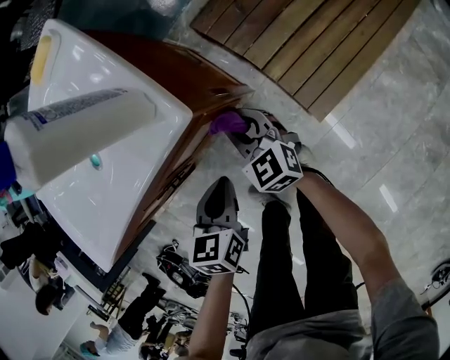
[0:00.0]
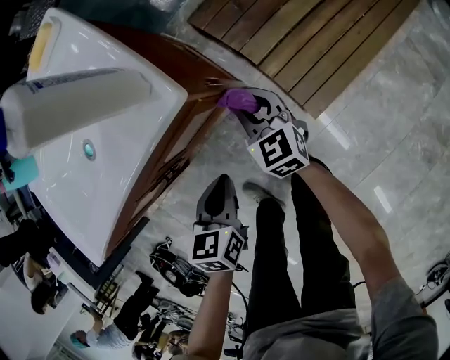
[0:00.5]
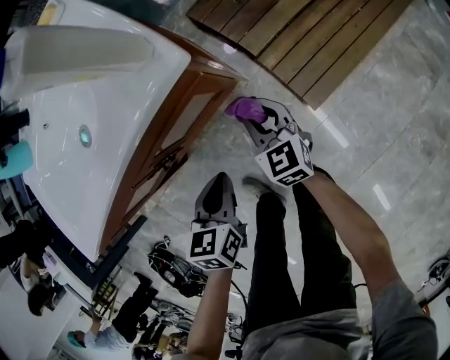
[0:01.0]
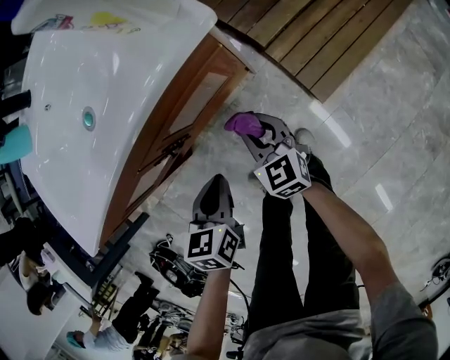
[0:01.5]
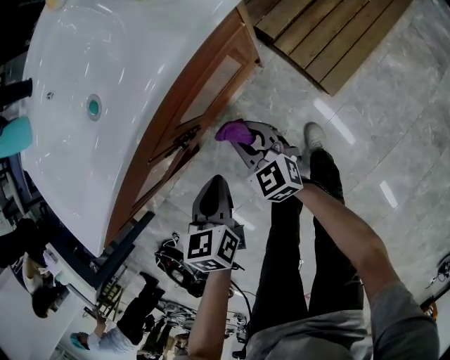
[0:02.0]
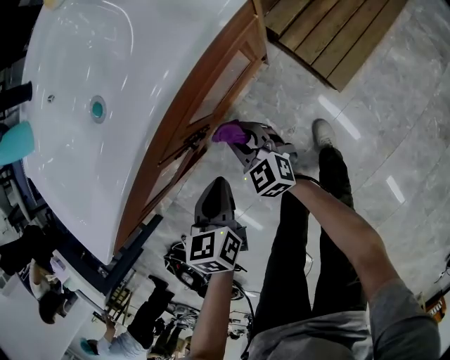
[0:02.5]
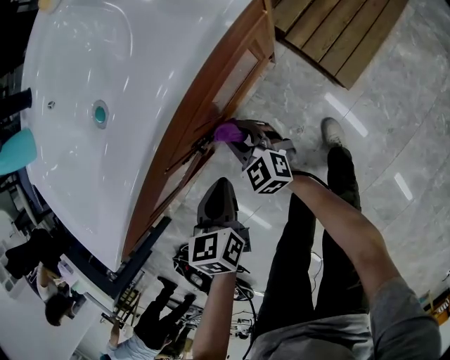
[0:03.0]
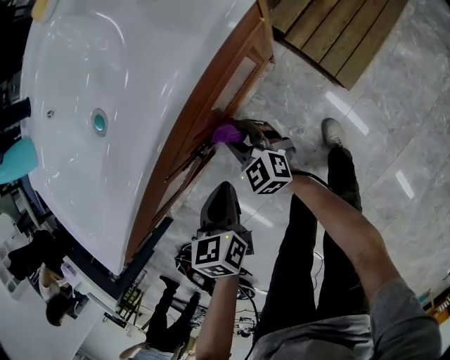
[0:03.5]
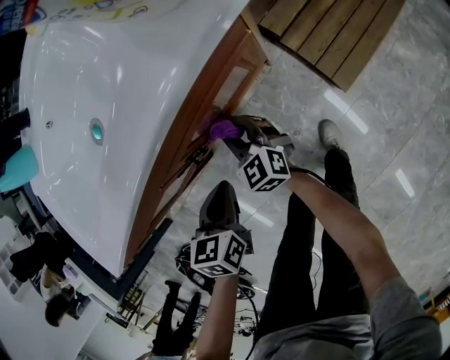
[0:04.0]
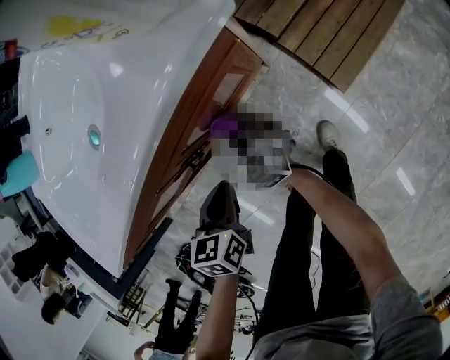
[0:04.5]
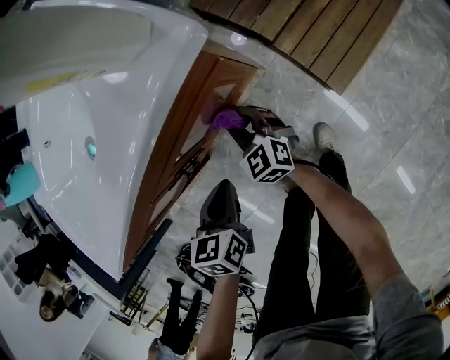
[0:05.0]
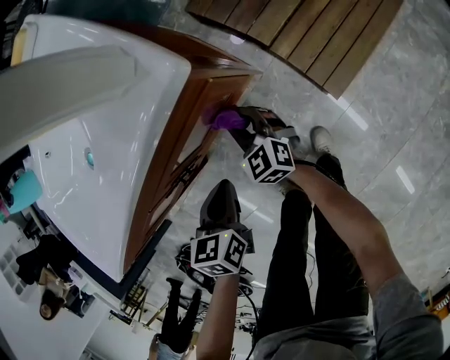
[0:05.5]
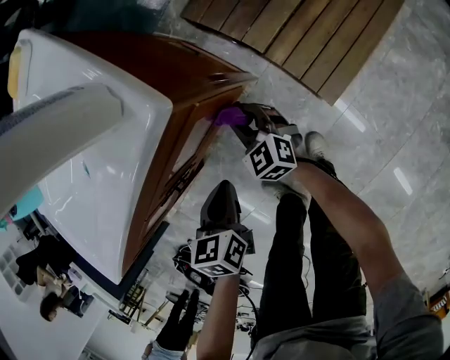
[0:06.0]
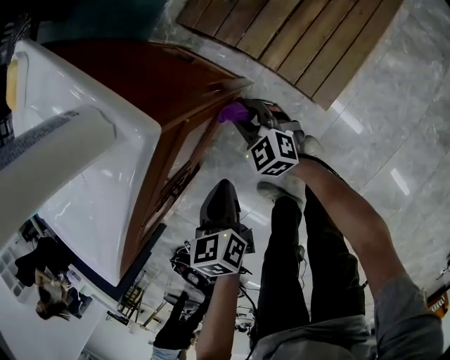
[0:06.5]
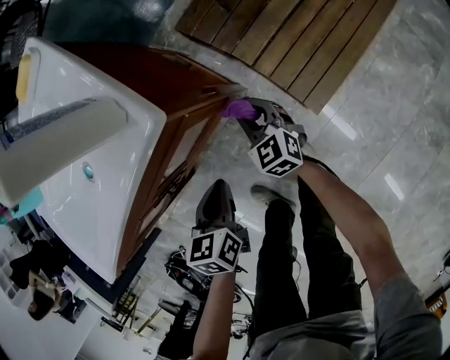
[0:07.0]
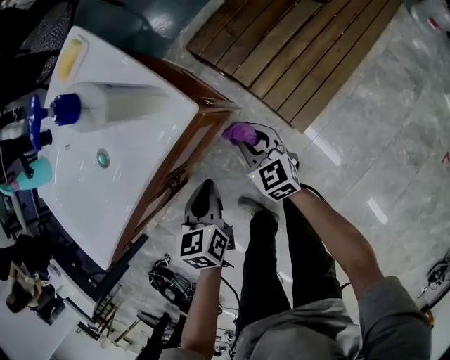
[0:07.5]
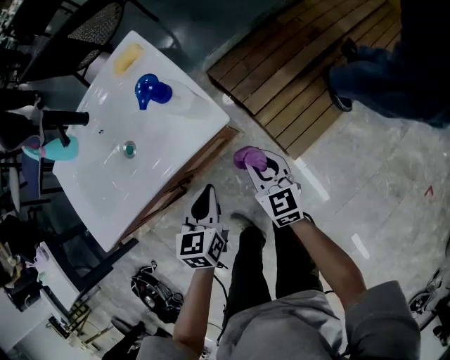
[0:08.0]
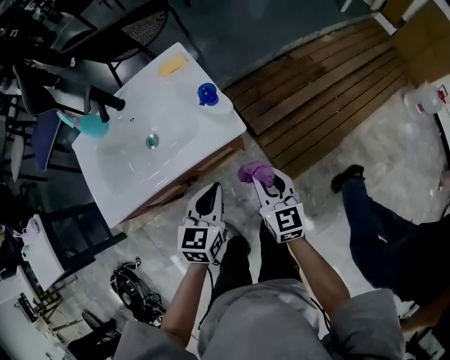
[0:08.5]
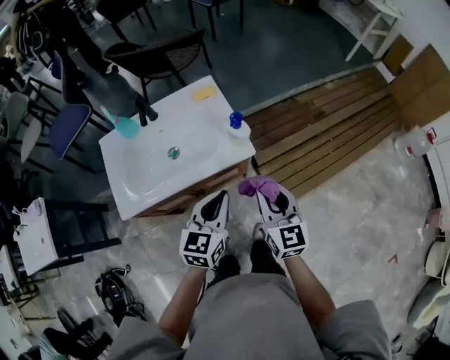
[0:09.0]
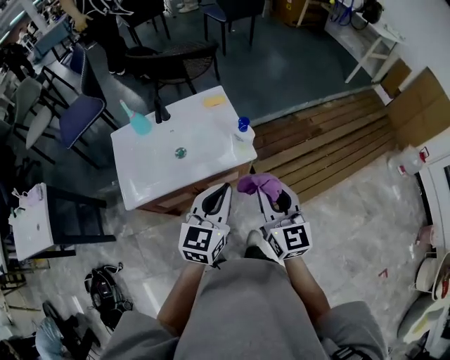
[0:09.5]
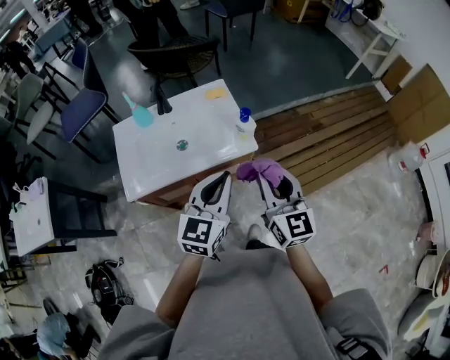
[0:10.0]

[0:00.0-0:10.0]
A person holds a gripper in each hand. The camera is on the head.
0:00.0 to 0:02.0: The right gripper moves backward and to the left, about 15 cm. The left gripper heads to the left and backward, covering some 15 cm.
0:02.0 to 0:04.0: The right gripper goes about 5 cm forward.
0:04.0 to 0:06.0: Both grippers move to the right, roughly 10 cm.
0:06.0 to 0:08.0: The two grippers go some 20 cm upward.
0:08.0 to 0:10.0: The grippers both shift upward by some 35 cm. The right gripper turns by some 20 degrees; the left gripper swivels some 30 degrees.

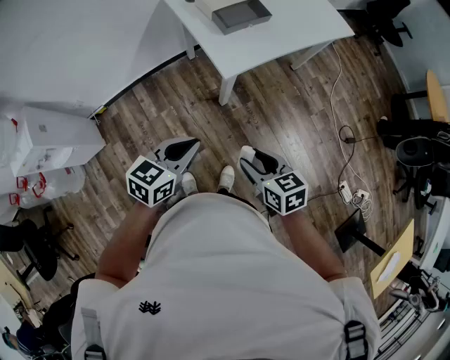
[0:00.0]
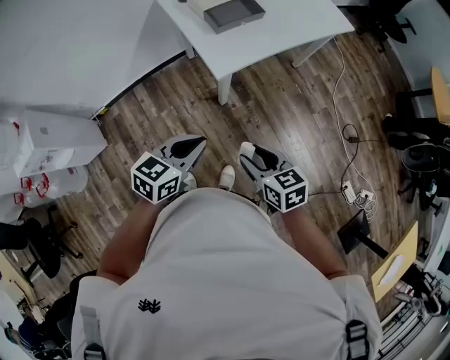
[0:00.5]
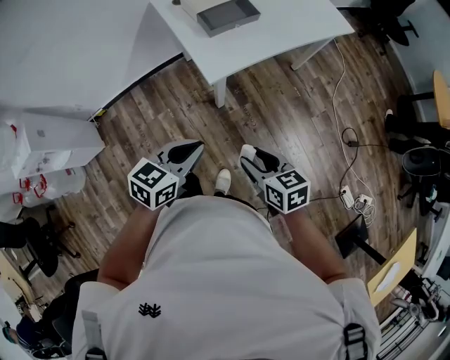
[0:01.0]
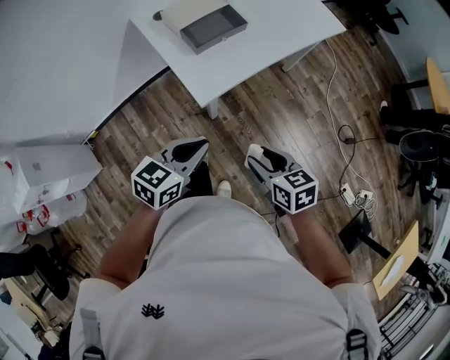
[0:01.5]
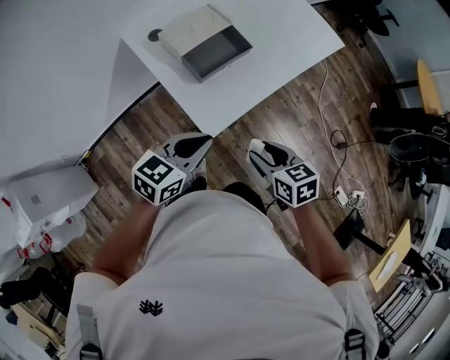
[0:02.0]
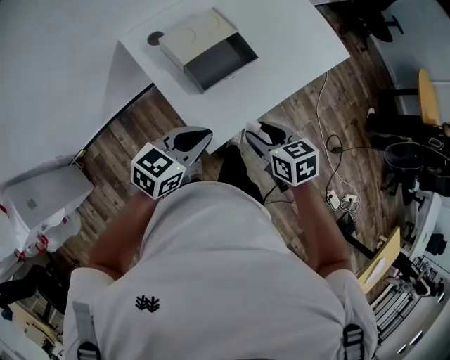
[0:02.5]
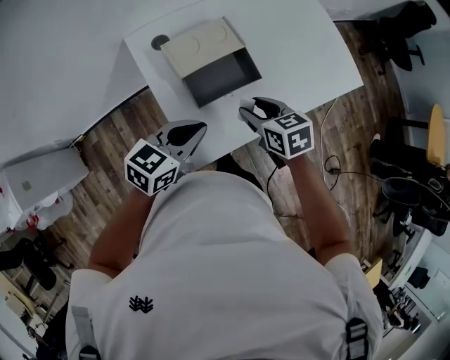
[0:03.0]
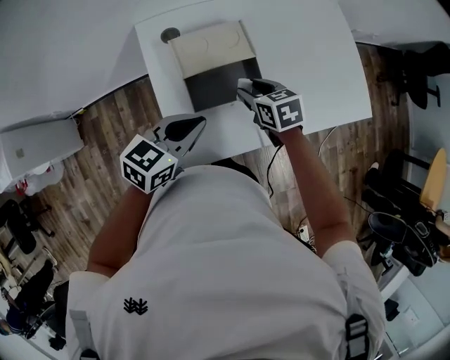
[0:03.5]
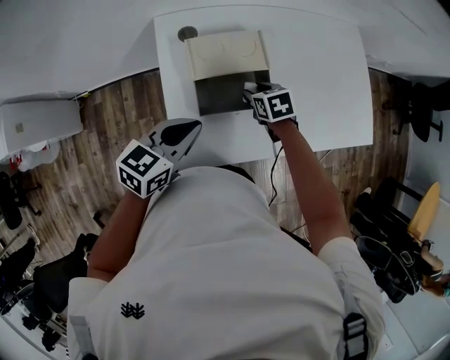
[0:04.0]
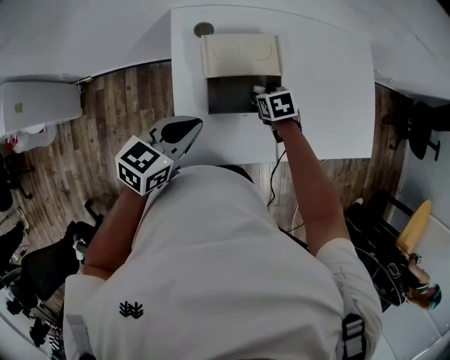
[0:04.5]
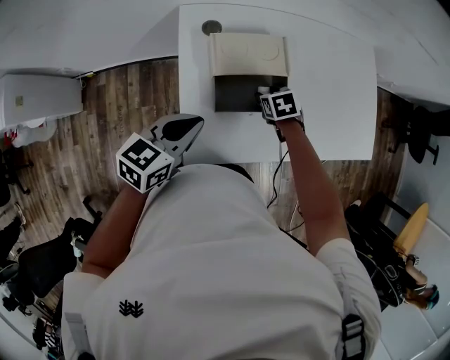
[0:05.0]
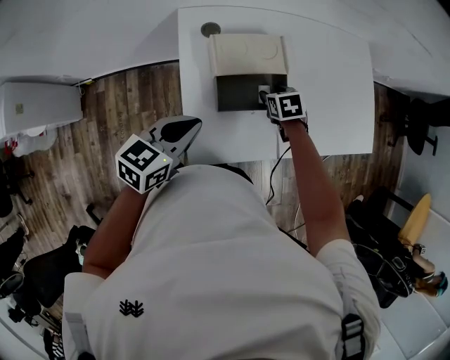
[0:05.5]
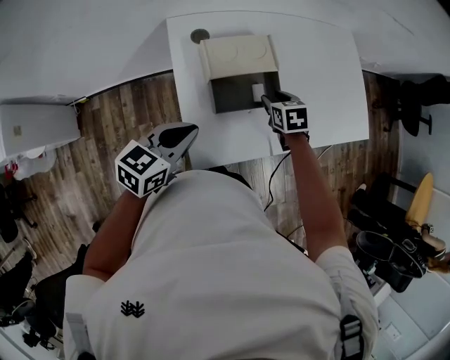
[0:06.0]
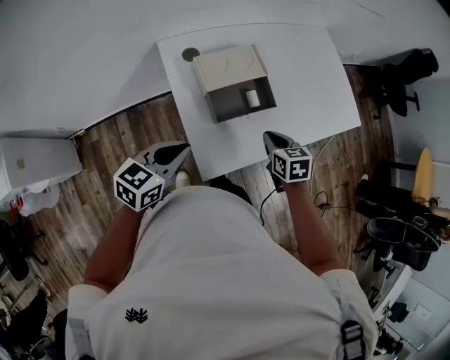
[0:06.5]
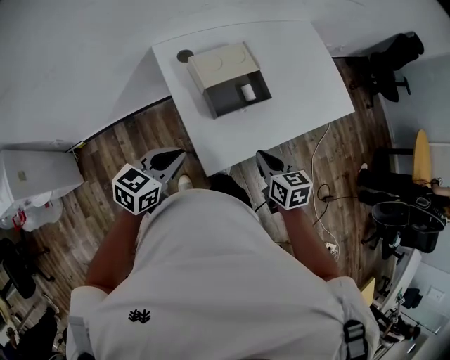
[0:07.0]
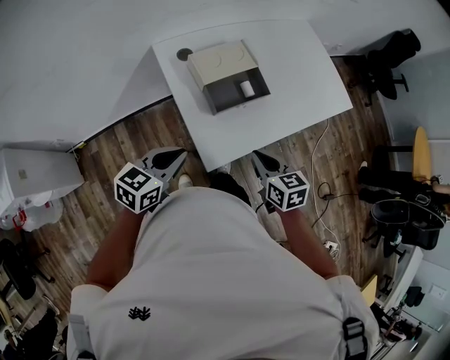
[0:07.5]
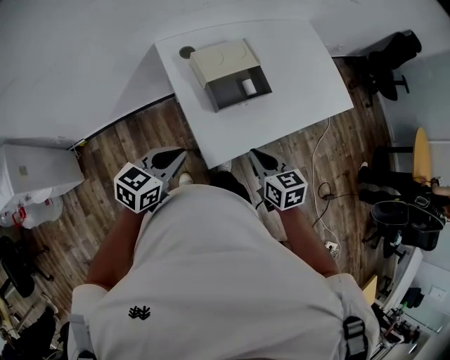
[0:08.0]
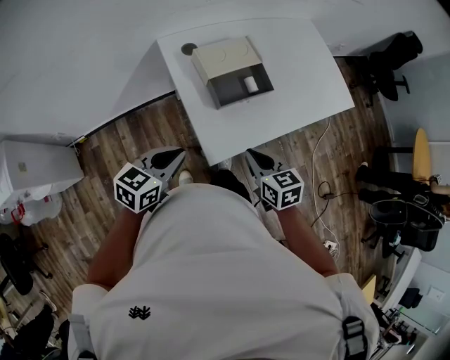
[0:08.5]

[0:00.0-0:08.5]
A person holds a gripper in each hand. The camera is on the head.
0:00.0 to 0:02.0: Both grippers travel together forward, roughly 20 cm.
0:02.0 to 0:04.0: The left gripper shifts by about 15 cm, and rotates roughly 30 degrees, while the right gripper moves about 40 cm, and turns by roughly 30 degrees.
0:04.0 to 0:06.5: The left gripper shifts about 10 cm to the left and backward. Meanwhile the right gripper travels backward and upward by approximately 15 cm, changes its angle by roughly 20 degrees, and closes its fingers.
0:06.5 to 0:08.5: The left gripper goes about 5 cm backward, while the right gripper moves backward and to the left, approximately 15 cm.

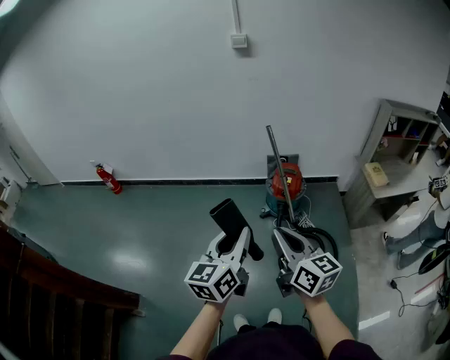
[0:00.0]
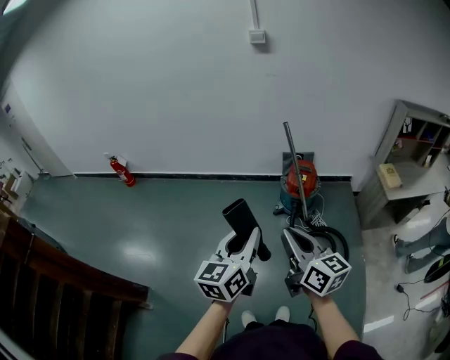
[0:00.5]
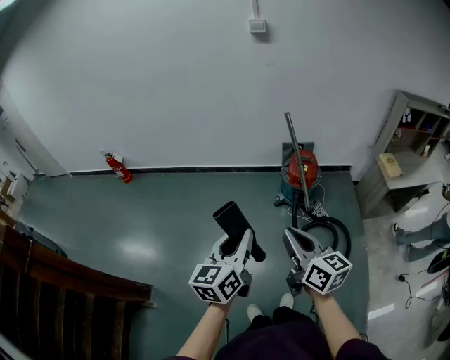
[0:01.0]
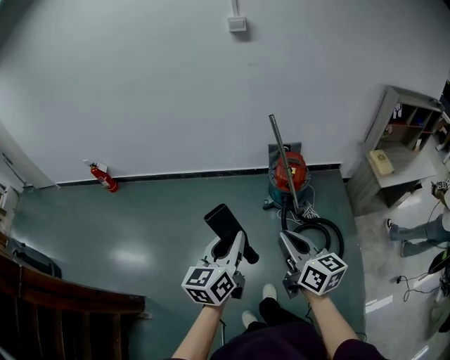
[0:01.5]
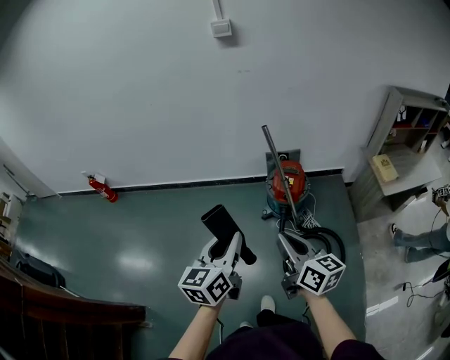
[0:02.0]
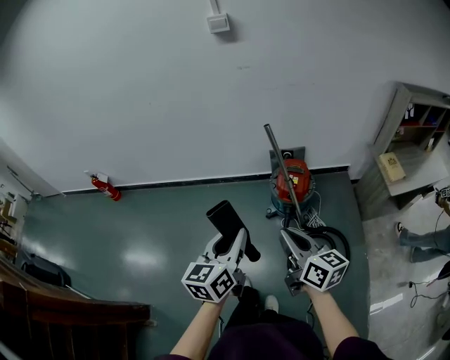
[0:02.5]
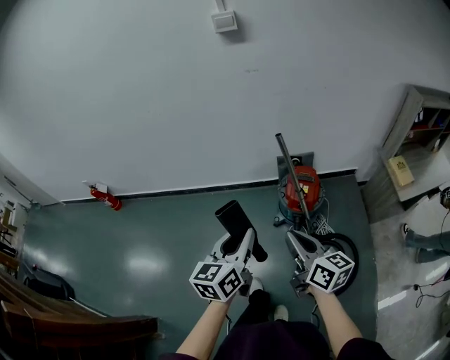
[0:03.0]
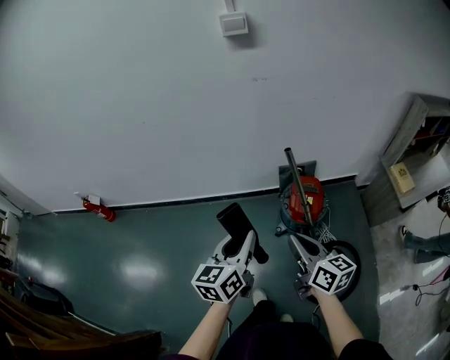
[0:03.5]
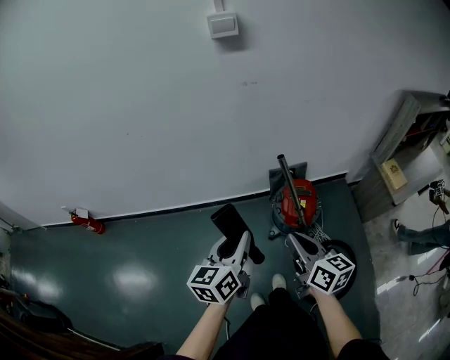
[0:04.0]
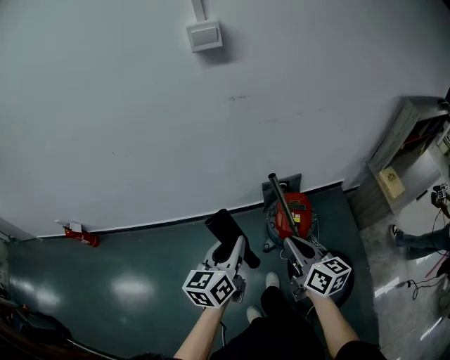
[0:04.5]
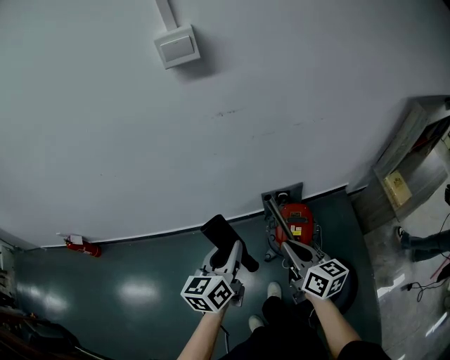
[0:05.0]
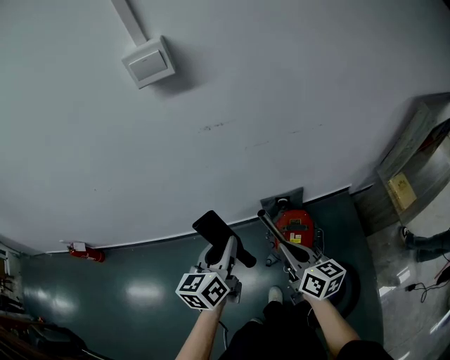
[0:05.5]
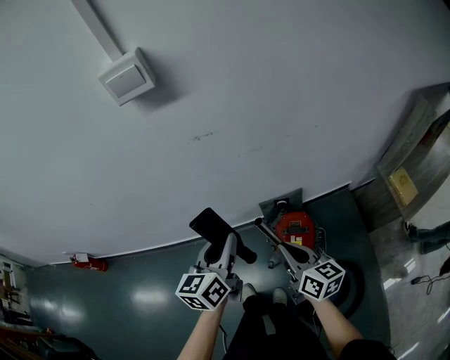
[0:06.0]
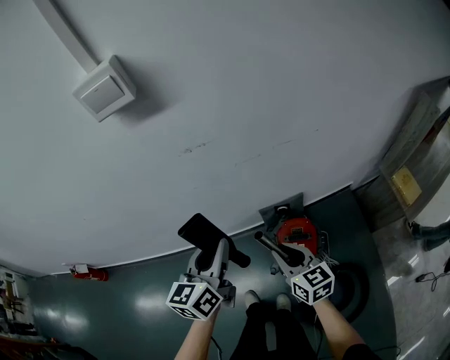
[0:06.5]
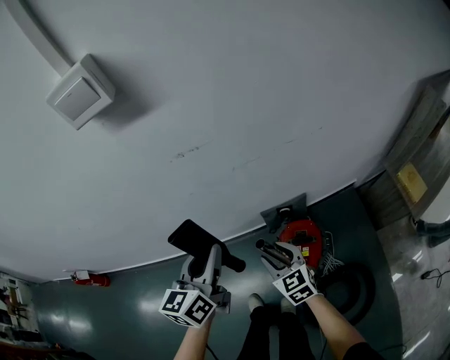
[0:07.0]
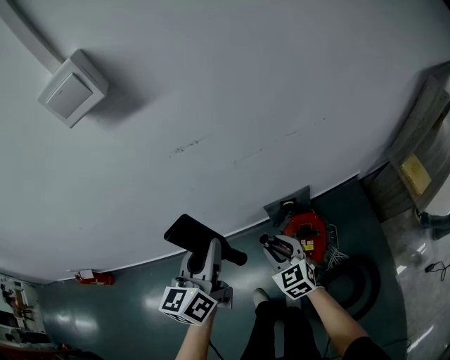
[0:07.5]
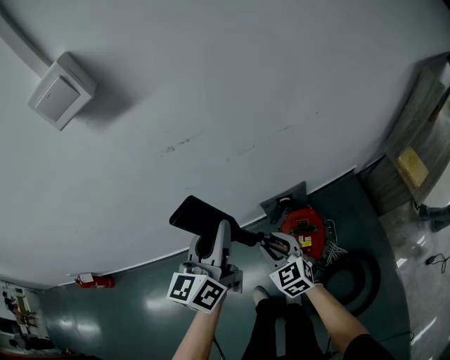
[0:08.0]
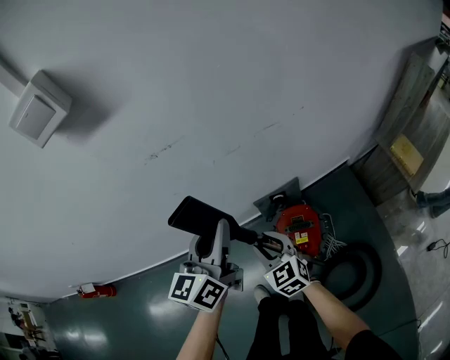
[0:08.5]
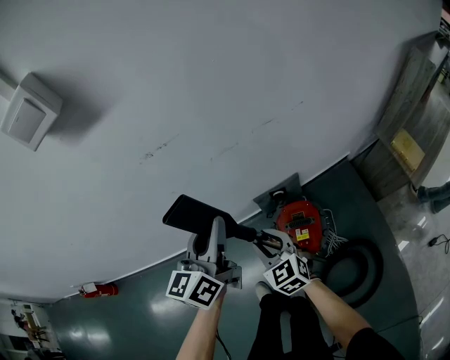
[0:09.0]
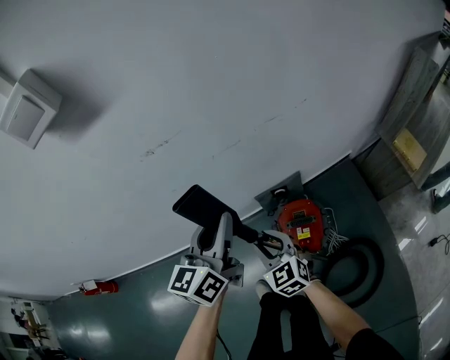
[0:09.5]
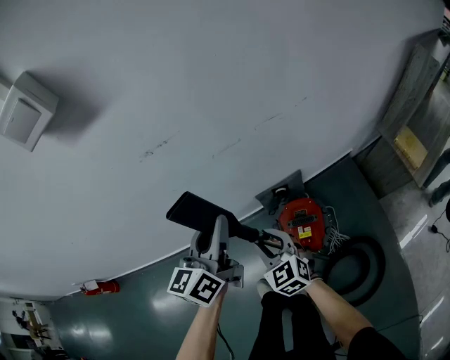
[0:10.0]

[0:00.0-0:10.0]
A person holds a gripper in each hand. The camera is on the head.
0:00.0 to 0:02.0: The left gripper travels forward by about 15 cm. Meanwhile the right gripper shifts approximately 15 cm forward, downward and to the right.
0:02.0 to 0:04.0: Both grippers travel together forward, about 30 cm.
0:04.0 to 0:06.0: The left gripper shifts roughly 25 cm forward, while the right gripper moves forward and to the right, some 25 cm.
0:06.0 to 0:08.0: The right gripper travels downward and forward by some 15 cm, changes its angle by roughly 40 degrees, and opens up, while the left gripper shifts roughly 10 cm forward.
0:08.0 to 0:10.0: The grippers move only a little.
